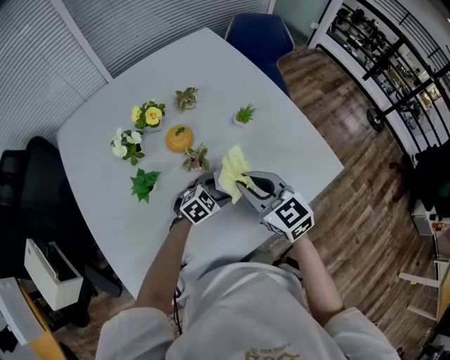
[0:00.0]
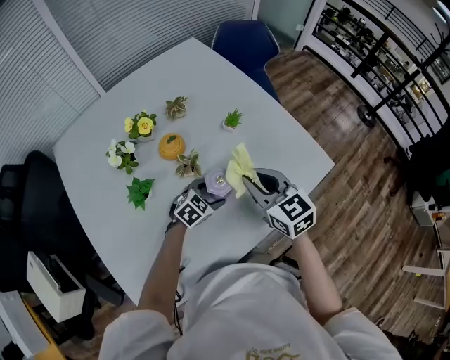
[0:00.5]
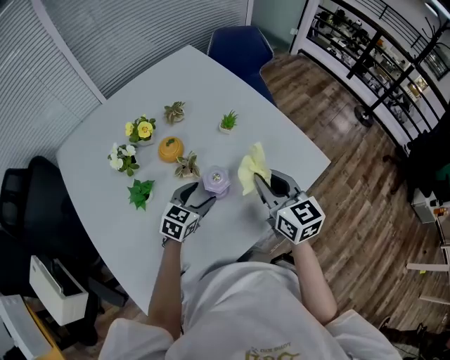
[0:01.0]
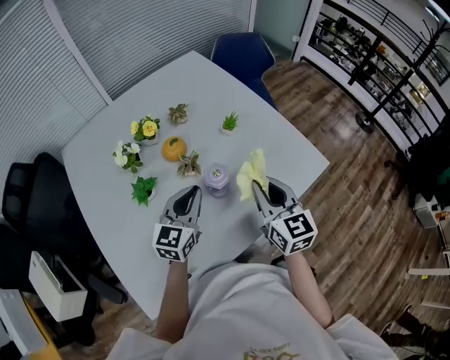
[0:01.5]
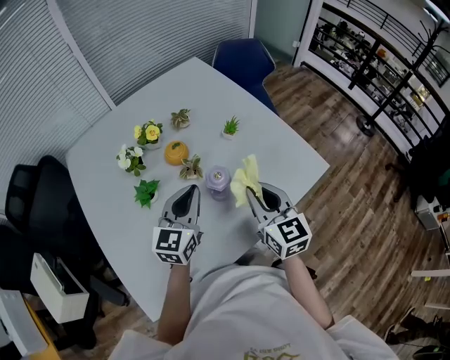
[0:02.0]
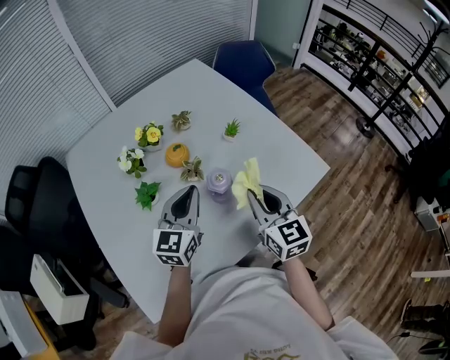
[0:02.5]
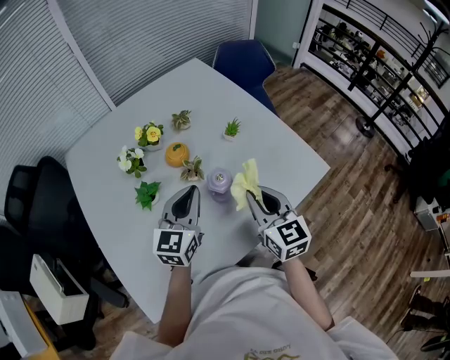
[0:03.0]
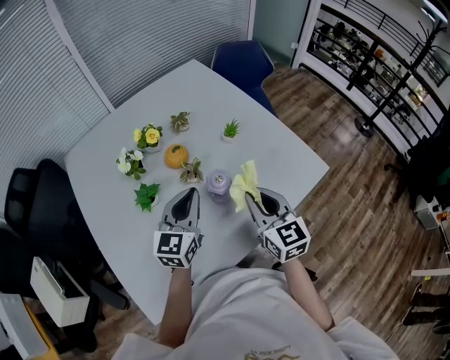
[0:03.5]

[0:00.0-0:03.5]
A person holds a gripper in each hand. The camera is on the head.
0:00.0 to 0:02.0: The left gripper goes about 25 cm upward, points its fingers some 40 degrees further upward, and closes its fingers; the right gripper heads to the right, backward and upward, covering approximately 10 cm, and swivels approximately 30 degrees.
0:02.0 to 0:03.5: Both grippers stay about where they are.

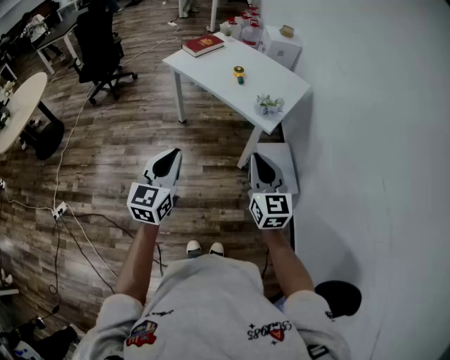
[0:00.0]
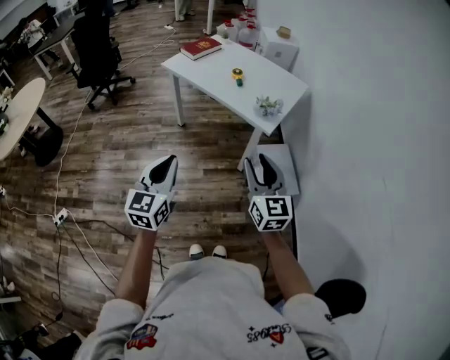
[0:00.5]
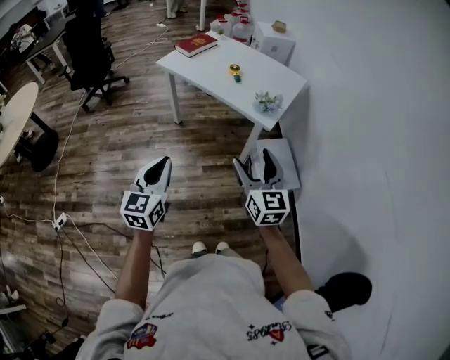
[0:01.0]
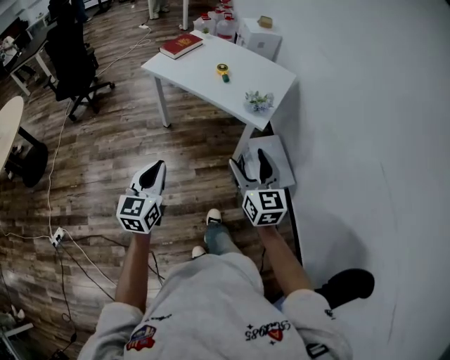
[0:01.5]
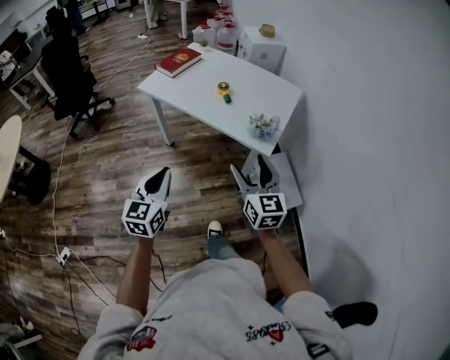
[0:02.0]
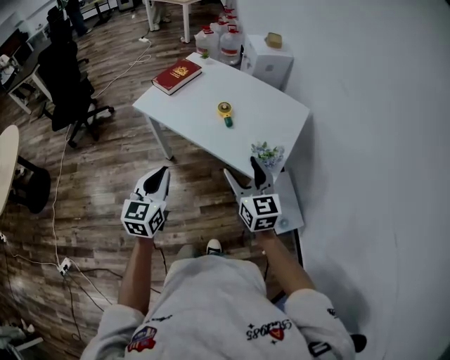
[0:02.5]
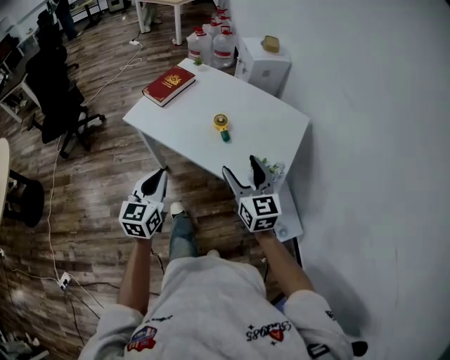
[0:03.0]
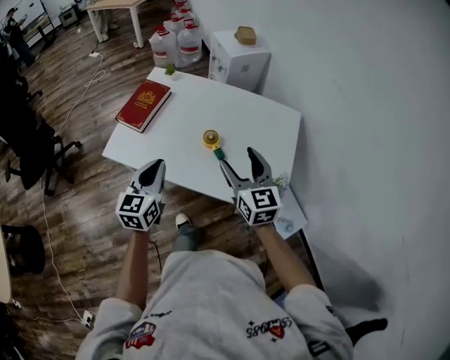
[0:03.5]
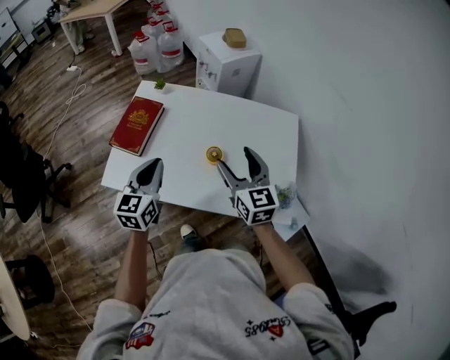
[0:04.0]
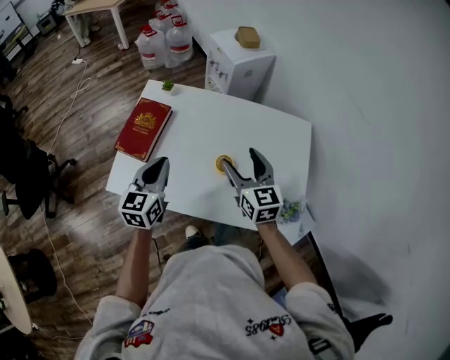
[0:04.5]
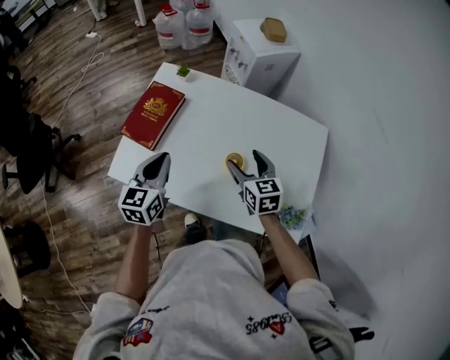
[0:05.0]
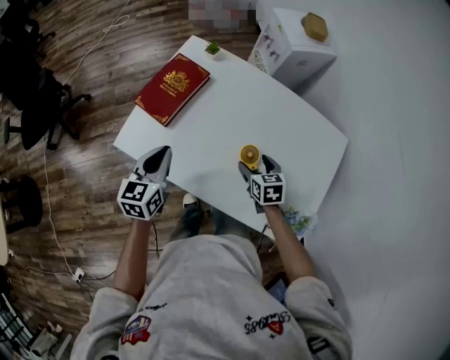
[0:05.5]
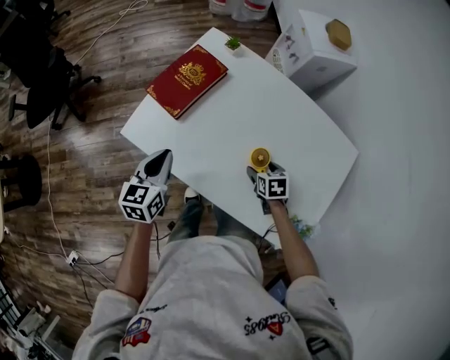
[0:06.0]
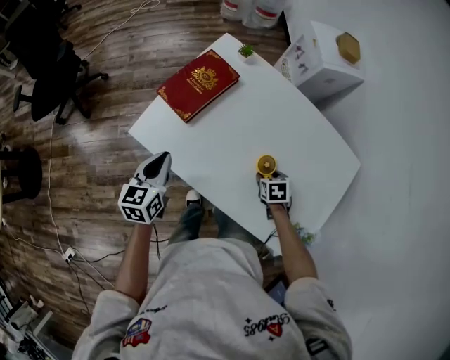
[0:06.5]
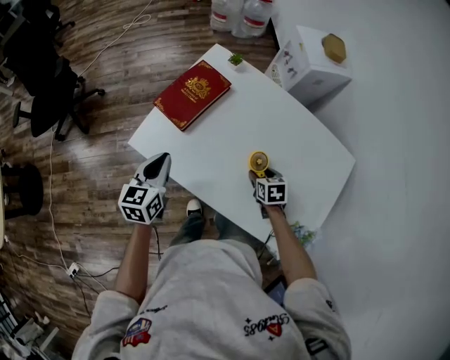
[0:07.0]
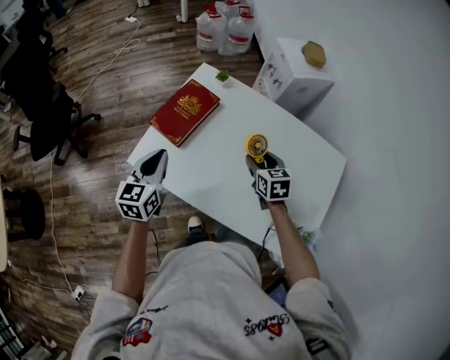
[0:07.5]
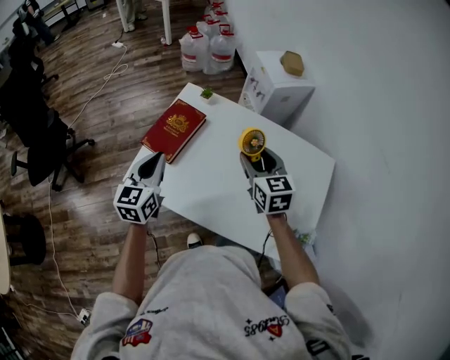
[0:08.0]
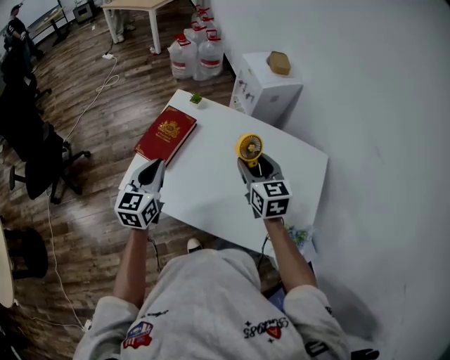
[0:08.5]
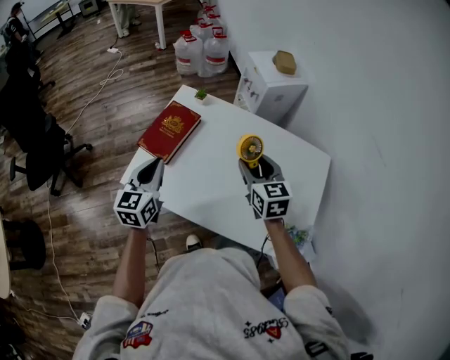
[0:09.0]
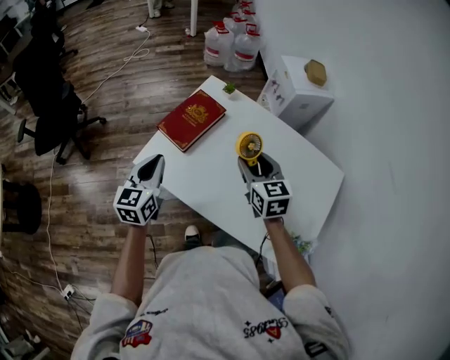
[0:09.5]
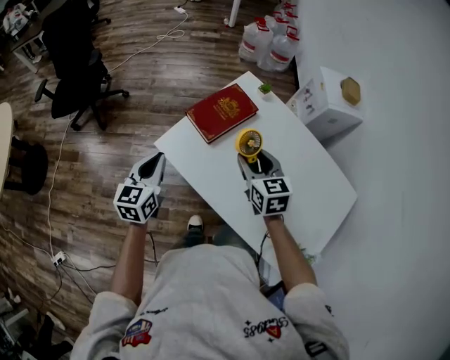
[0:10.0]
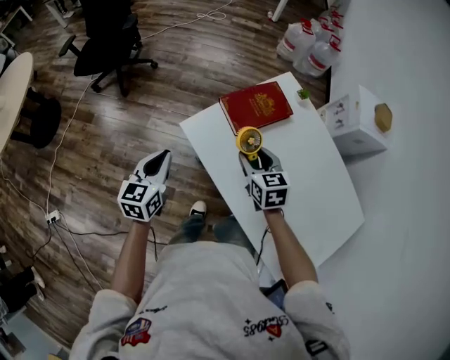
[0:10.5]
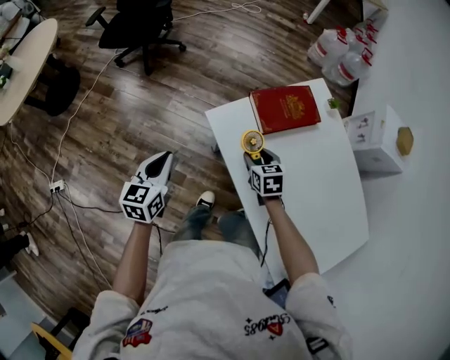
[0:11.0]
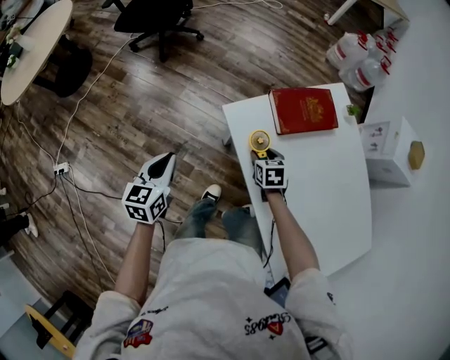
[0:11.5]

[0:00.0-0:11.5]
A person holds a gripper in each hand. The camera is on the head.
0:00.0 to 0:02.0: Both grippers travel together forward, roughly 20 cm. The right gripper opens its fingers.
0:02.0 to 0:04.0: Both grippers are carried forward, some 60 cm. The left gripper swivels about 20 degrees.
0:04.0 to 0:06.0: The right gripper moves downward, about 35 cm, and tips its fingers downward by approximately 50 degrees, while the left gripper travels downward and to the left by some 20 cm, and rotates roughly 30 degrees.
0:06.0 to 0:07.5: The left gripper goes about 10 cm upward. Meanwhile the right gripper is displaced upward and forward by about 15 cm, changes its angle by some 20 degrees, and closes its fingers.
0:07.5 to 0:09.5: The left gripper ends up roughly 5 cm from where it was; the right gripper heads upward and to the left, covering approximately 15 cm.
0:09.5 to 0:11.5: The left gripper shifts by some 30 cm, and rotates approximately 40 degrees. Meanwhile the right gripper moves downward, about 30 cm, and rotates approximately 40 degrees.

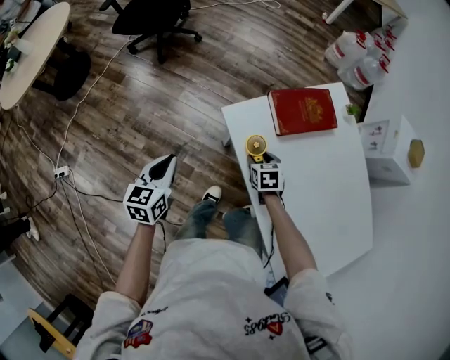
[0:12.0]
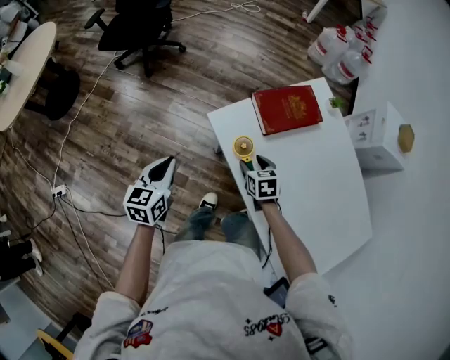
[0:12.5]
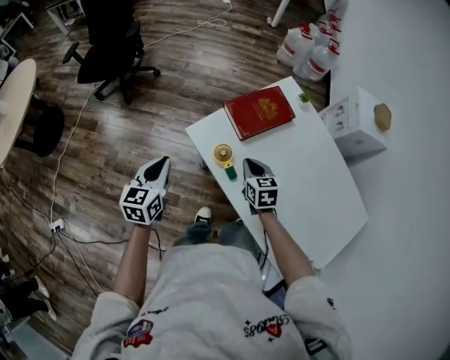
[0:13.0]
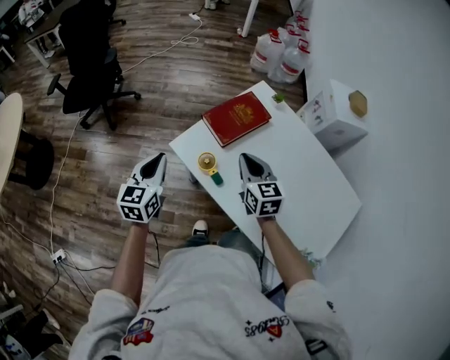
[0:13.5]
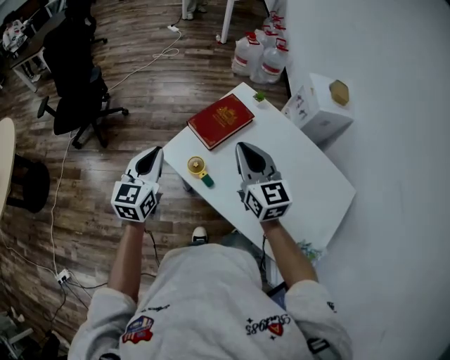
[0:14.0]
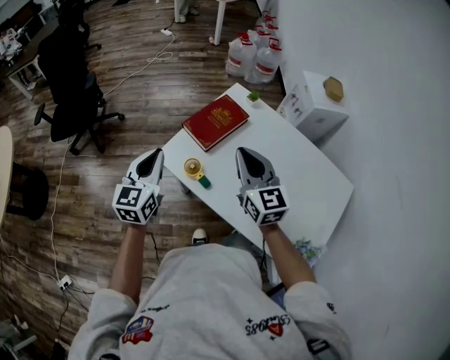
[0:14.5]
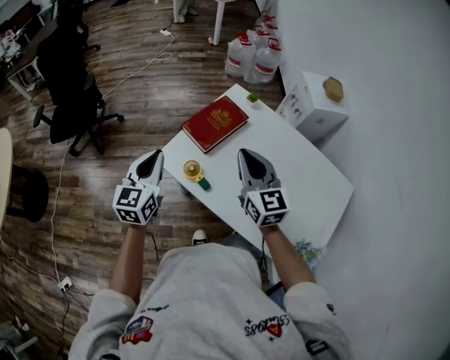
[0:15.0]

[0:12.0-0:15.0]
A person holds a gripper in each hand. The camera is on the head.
0:12.0 to 0:13.5: The right gripper is displaced upward by some 25 cm, tilts its fingers some 40 degrees upward, and closes up, while the left gripper travels upward, to the right and forward by approximately 20 cm, and rotates approximately 20 degrees.
0:13.5 to 0:15.0: The left gripper travels upward and to the right by roughly 10 cm, while the right gripper moves upward, about 10 cm.

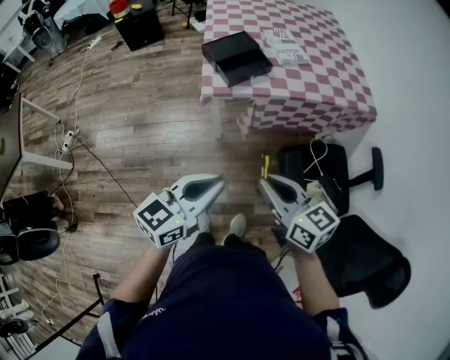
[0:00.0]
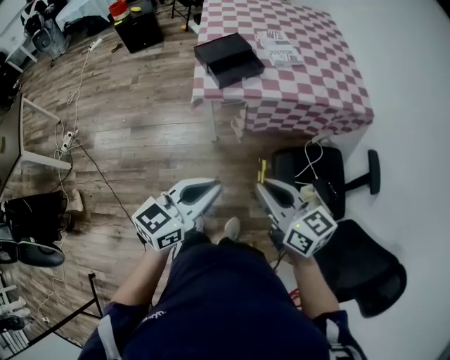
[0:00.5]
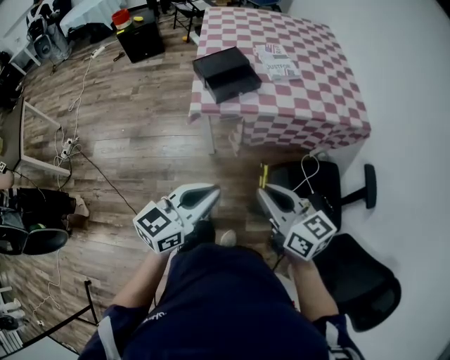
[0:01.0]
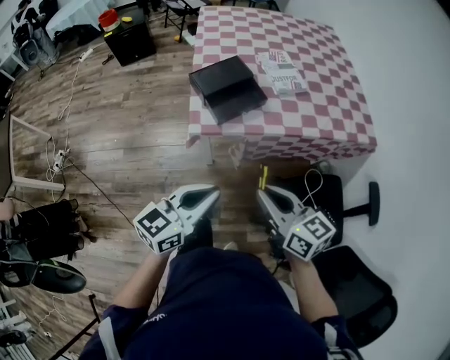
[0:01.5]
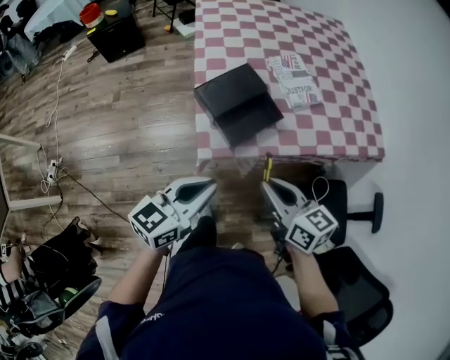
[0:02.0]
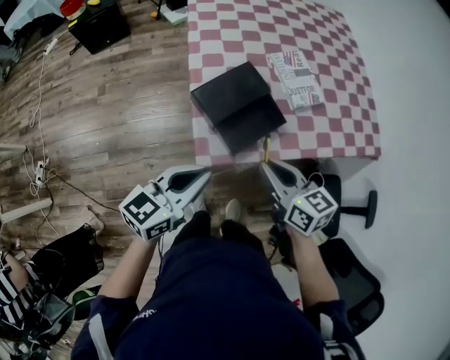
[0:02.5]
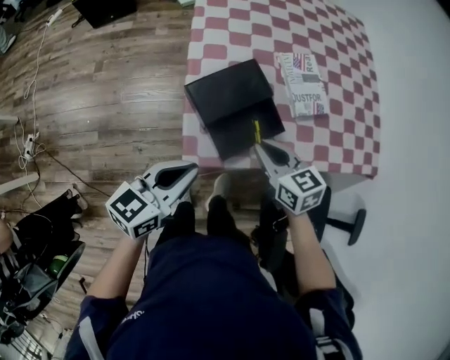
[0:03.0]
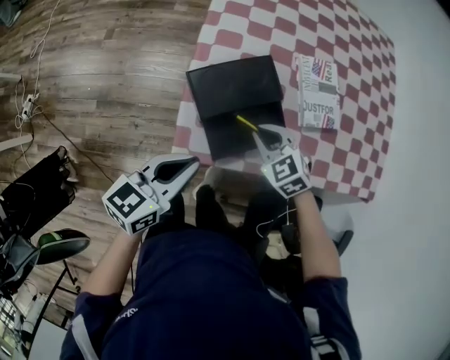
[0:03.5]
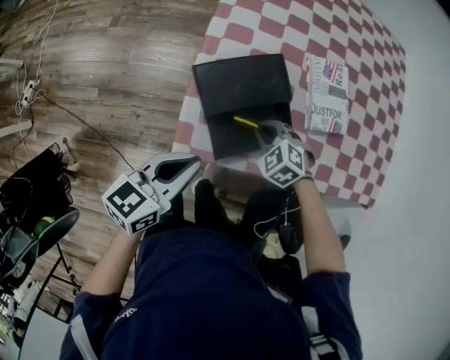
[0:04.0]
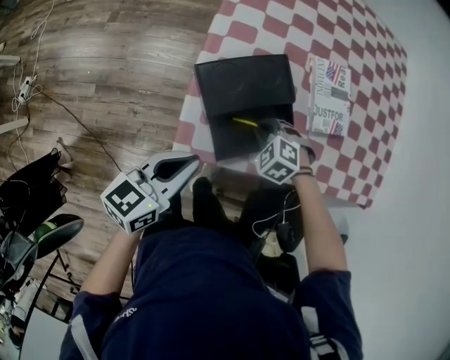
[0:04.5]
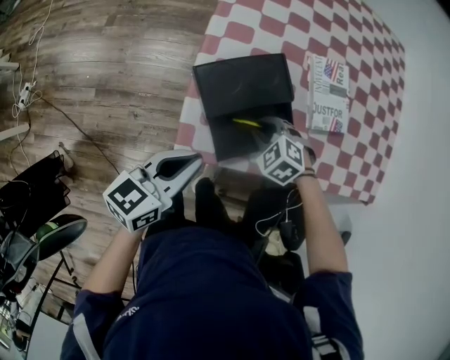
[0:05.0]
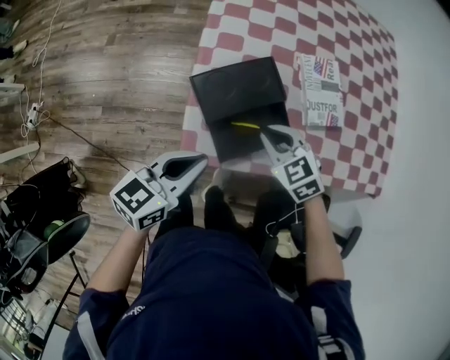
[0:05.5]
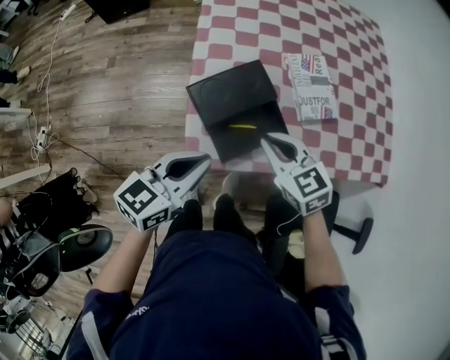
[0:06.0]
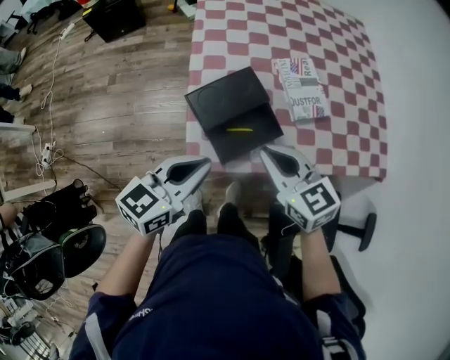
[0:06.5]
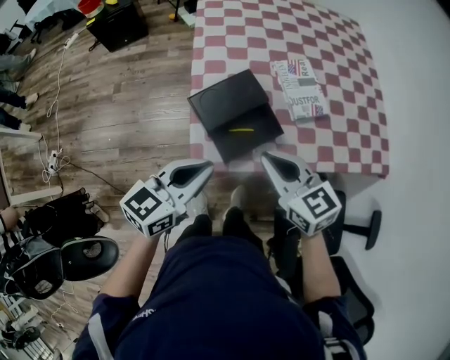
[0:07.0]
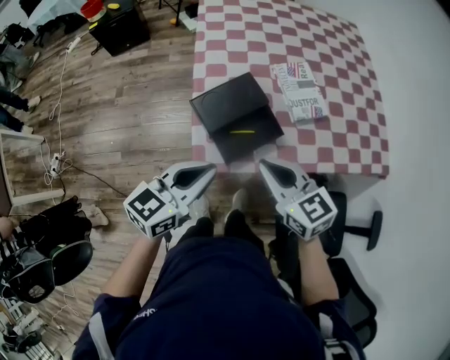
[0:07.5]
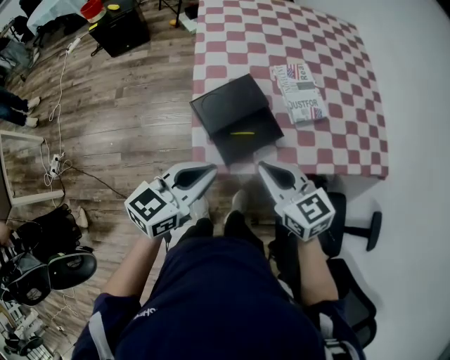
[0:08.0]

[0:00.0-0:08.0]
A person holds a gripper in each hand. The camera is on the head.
0:00.0 to 0:02.0: Both grippers travel together forward, about 30 cm.
0:02.0 to 0:04.0: The left gripper is displaced forward and downward by approximately 15 cm; the right gripper goes about 30 cm forward and downward, and twists some 60 degrees counterclockwise, seen from behind.
0:04.0 to 0:06.0: The left gripper heads upward, covering about 5 cm, while the right gripper moves upward, roughly 15 cm, and turns by about 40 degrees.
0:06.0 to 0:08.0: The right gripper moves backward and upward, roughly 10 cm. The left gripper moves upward, about 5 cm.
